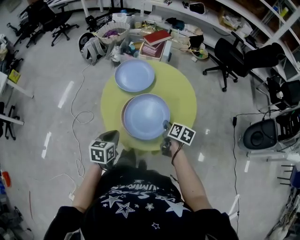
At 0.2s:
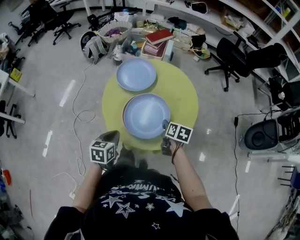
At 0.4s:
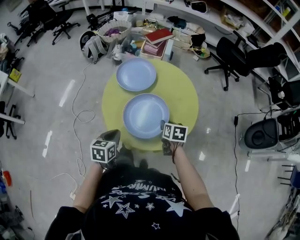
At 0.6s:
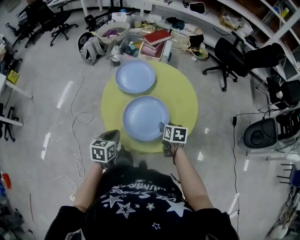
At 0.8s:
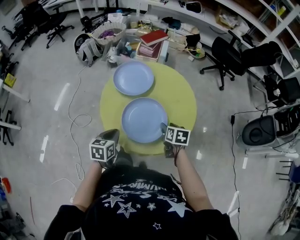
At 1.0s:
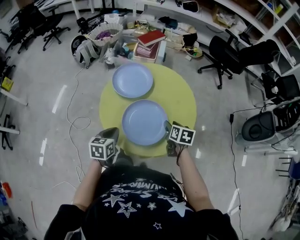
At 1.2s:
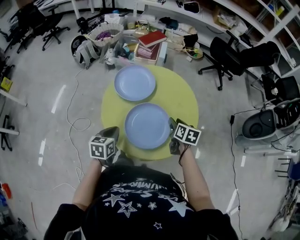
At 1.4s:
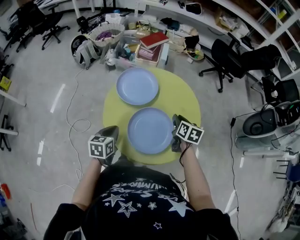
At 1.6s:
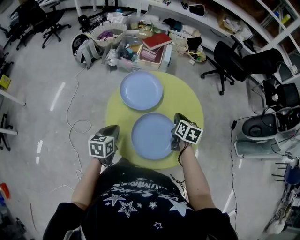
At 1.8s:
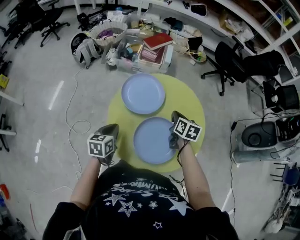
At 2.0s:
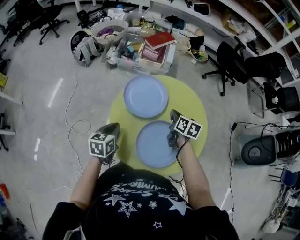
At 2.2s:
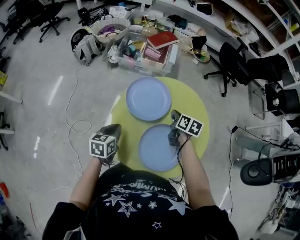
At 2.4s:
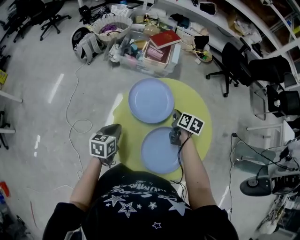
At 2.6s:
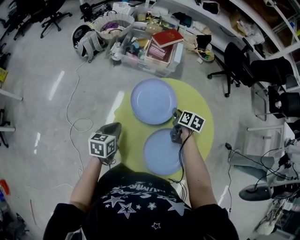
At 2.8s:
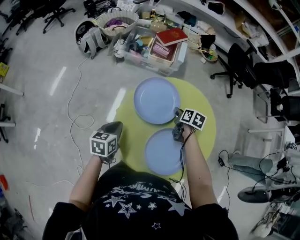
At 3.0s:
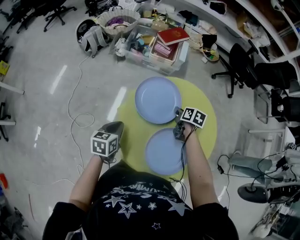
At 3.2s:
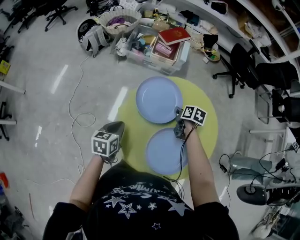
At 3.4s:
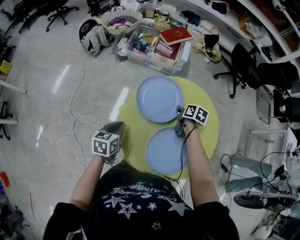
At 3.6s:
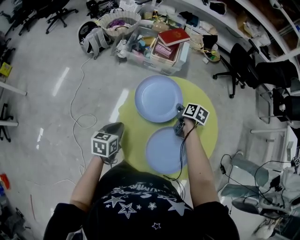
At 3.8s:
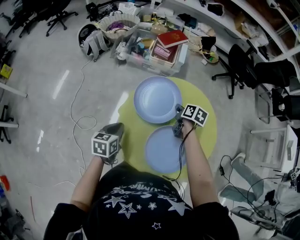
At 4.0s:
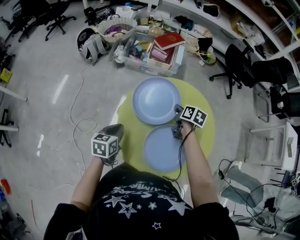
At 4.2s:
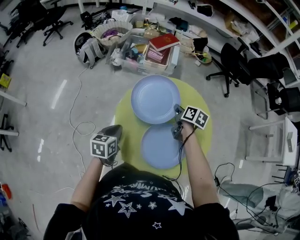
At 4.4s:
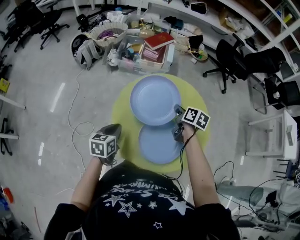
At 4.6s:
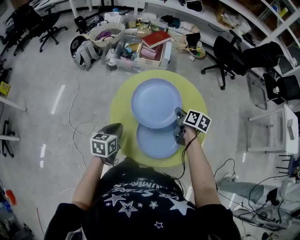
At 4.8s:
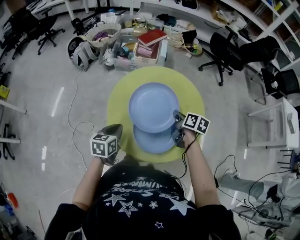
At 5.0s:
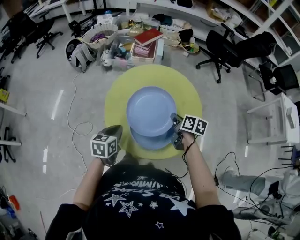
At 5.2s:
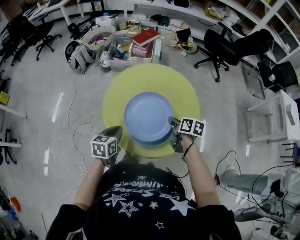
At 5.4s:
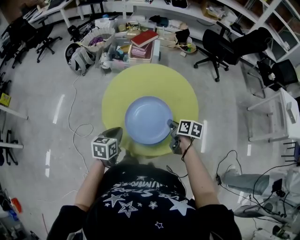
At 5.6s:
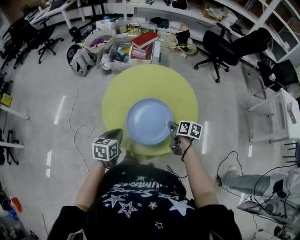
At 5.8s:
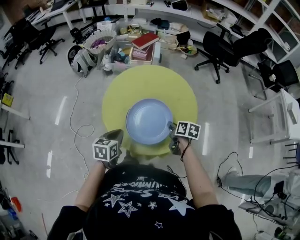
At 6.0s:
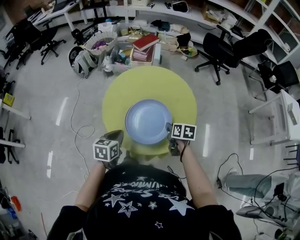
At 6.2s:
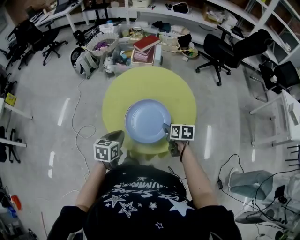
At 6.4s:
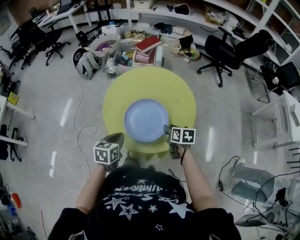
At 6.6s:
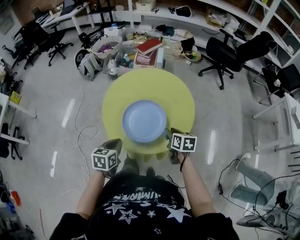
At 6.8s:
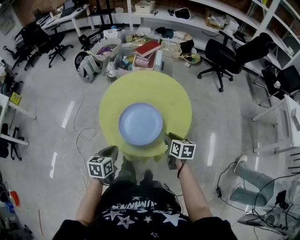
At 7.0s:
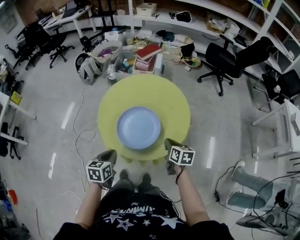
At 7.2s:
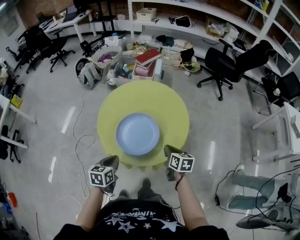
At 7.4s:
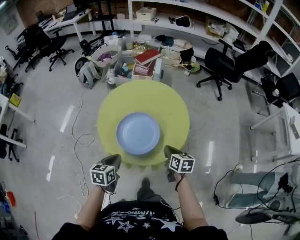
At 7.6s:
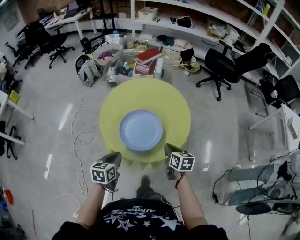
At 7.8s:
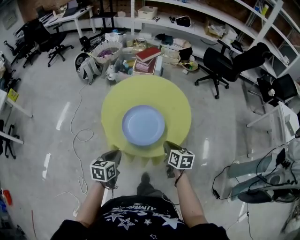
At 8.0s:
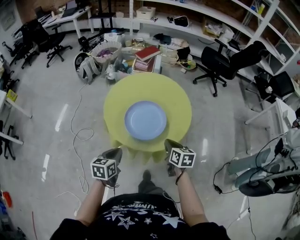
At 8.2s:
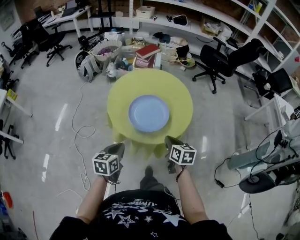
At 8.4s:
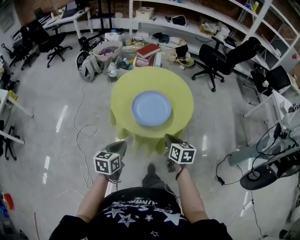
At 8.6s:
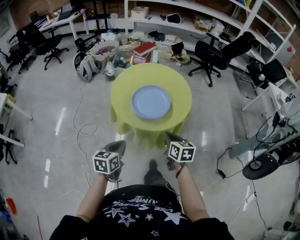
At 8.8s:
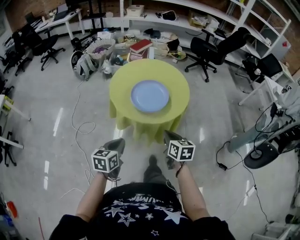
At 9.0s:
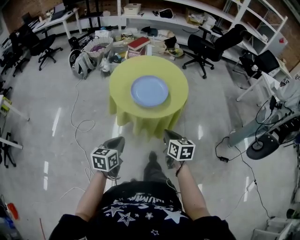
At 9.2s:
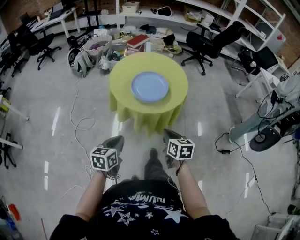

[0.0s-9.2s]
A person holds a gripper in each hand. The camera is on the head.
0.0s to 1.6s: The right gripper travels forward by about 15 cm, changes its angle by some 20 degrees, and opens and closes again. The left gripper is displaced forward and to the left by approximately 15 cm.
1.6s to 3.0s: The right gripper goes about 15 cm forward, downward and to the left, and rotates some 20 degrees; the left gripper travels forward and to the left by approximately 10 cm.
3.0s to 4.6s: The right gripper moves backward, upward and to the right, roughly 15 cm. Meanwhile the left gripper goes some 10 cm backward and to the right.
4.6s to 6.2s: The right gripper travels backward by roughly 15 cm, and opens its fingers. Meanwhile the left gripper is displaced backward and to the right by approximately 15 cm.
6.2s to 7.6s: Both grippers travel together backward, approximately 5 cm. The right gripper closes up.
7.6s to 9.2s: Both grippers travel together backward, roughly 20 cm.

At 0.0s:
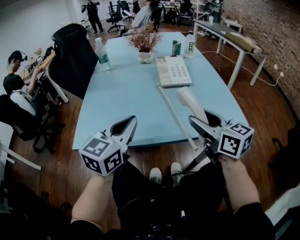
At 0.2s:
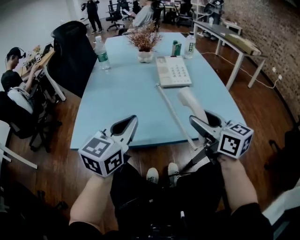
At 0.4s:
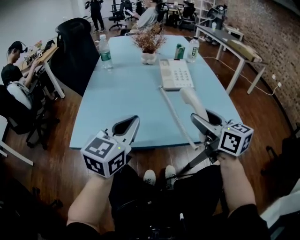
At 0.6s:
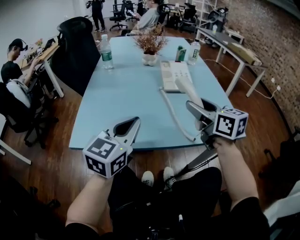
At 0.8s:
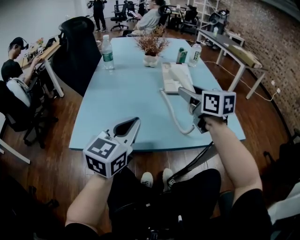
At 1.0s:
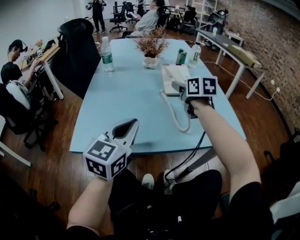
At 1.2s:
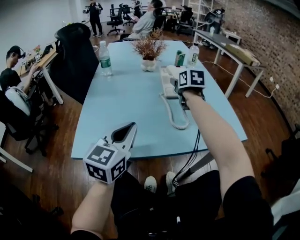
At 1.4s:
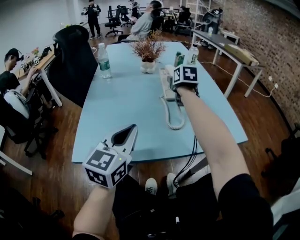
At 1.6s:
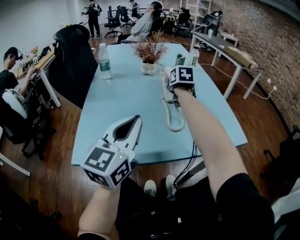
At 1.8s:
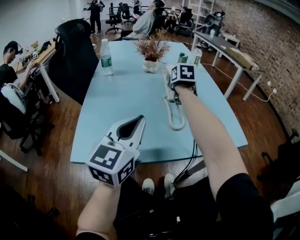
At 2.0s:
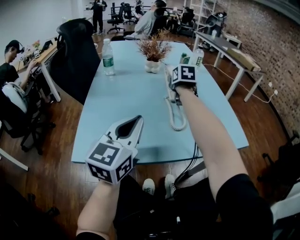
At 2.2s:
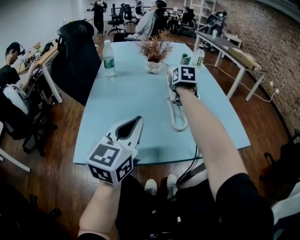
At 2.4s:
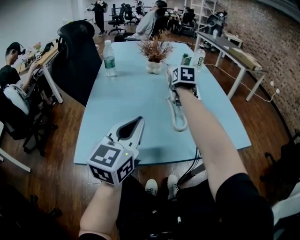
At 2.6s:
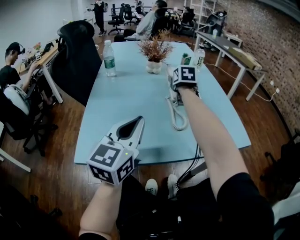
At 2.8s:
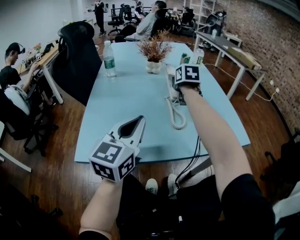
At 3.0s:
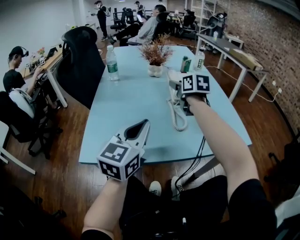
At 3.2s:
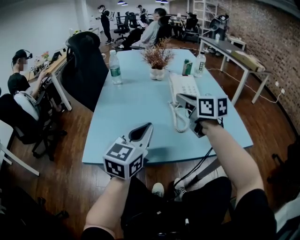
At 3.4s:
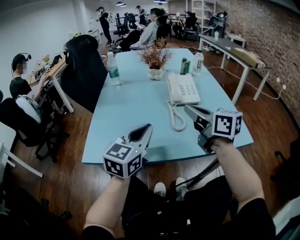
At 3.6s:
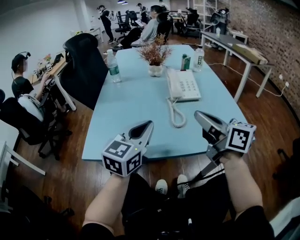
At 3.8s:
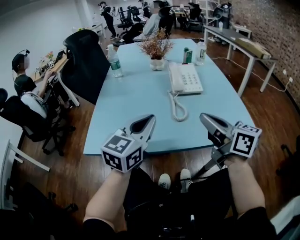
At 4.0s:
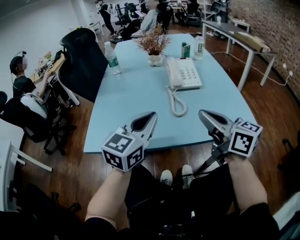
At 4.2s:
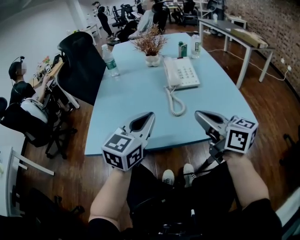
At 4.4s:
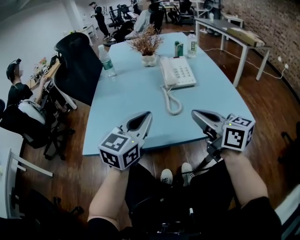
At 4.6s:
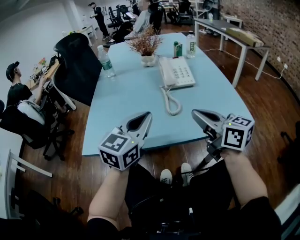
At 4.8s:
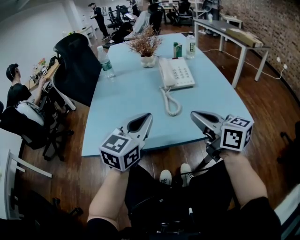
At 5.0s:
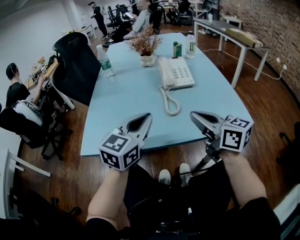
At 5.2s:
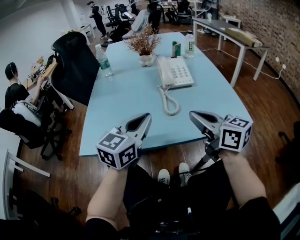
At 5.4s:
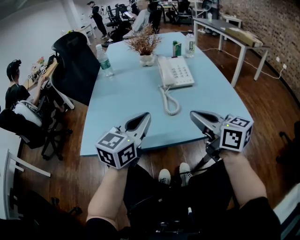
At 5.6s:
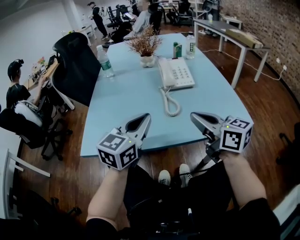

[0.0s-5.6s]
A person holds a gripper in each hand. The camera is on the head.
0.0s to 1.4s: The right gripper goes about 30 cm forward, and swivels roughly 30 degrees.
1.4s to 2.8s: The grippers move only a little.
2.8s to 4.2s: The left gripper heads to the right, covering some 5 cm. The right gripper moves backward, approximately 35 cm, rotates about 40 degrees, and closes its fingers.
4.2s to 5.6s: The grippers move only a little.

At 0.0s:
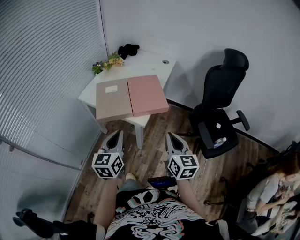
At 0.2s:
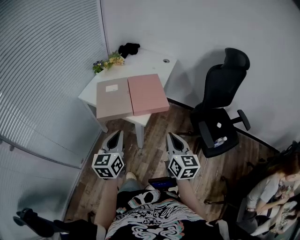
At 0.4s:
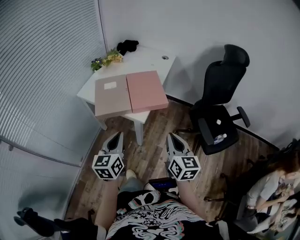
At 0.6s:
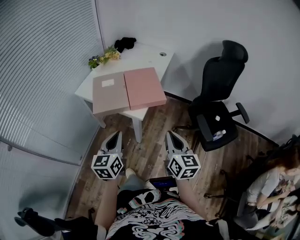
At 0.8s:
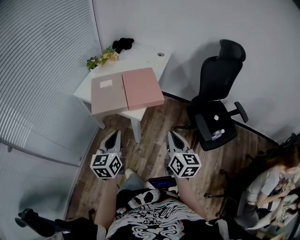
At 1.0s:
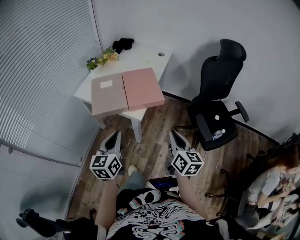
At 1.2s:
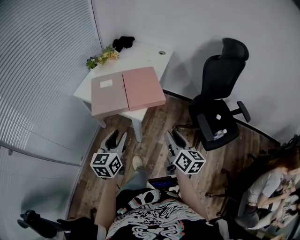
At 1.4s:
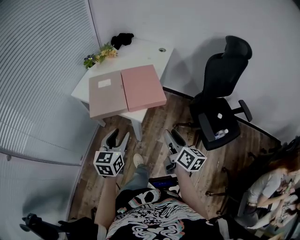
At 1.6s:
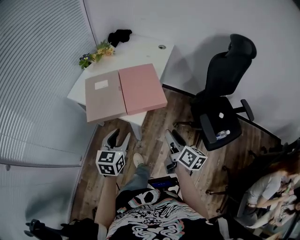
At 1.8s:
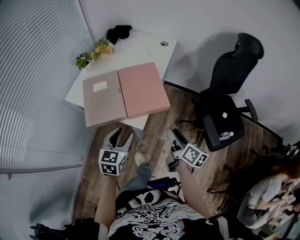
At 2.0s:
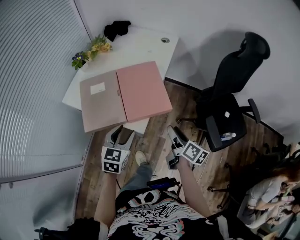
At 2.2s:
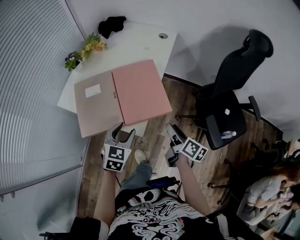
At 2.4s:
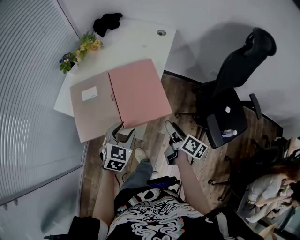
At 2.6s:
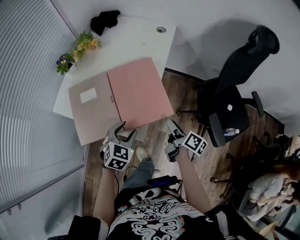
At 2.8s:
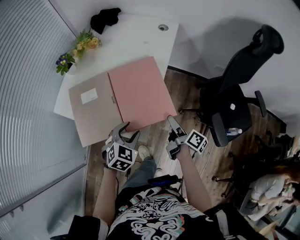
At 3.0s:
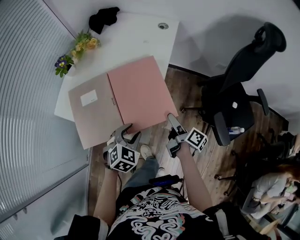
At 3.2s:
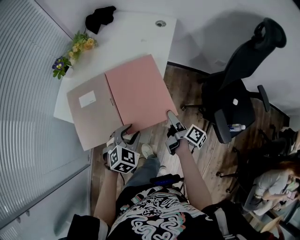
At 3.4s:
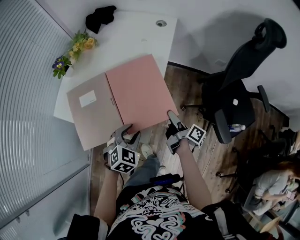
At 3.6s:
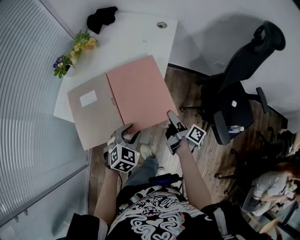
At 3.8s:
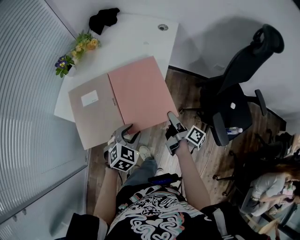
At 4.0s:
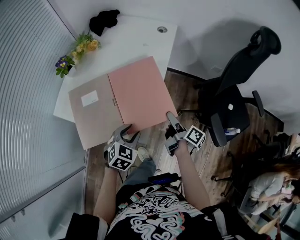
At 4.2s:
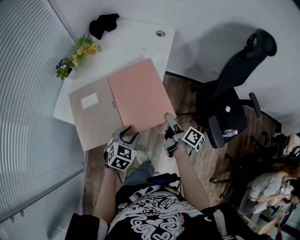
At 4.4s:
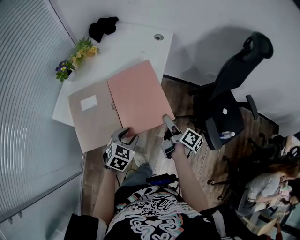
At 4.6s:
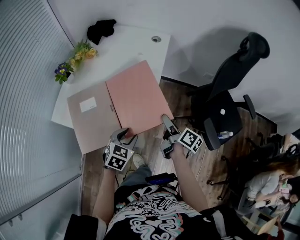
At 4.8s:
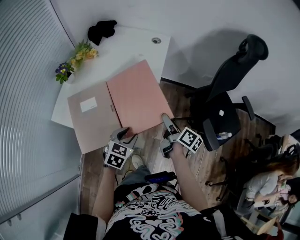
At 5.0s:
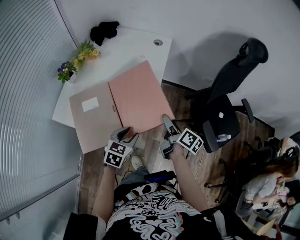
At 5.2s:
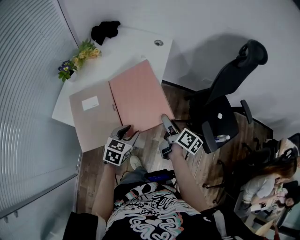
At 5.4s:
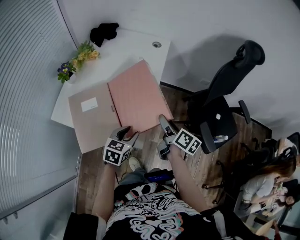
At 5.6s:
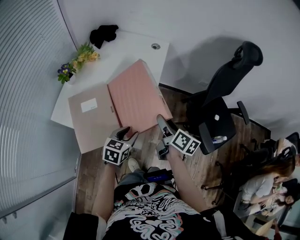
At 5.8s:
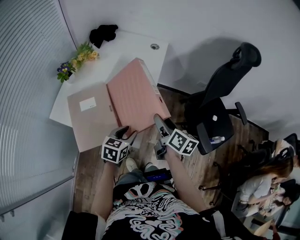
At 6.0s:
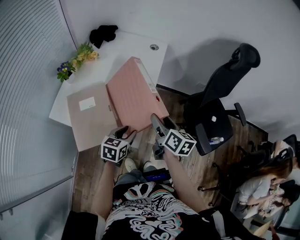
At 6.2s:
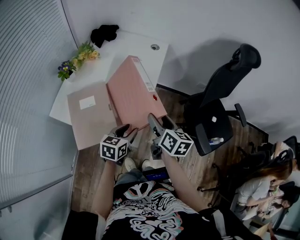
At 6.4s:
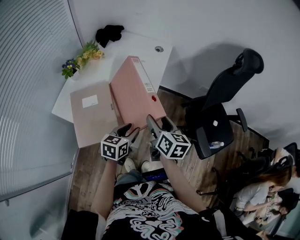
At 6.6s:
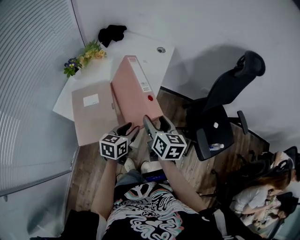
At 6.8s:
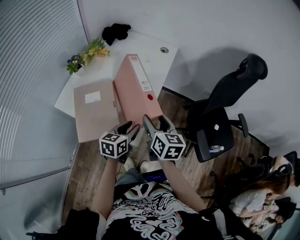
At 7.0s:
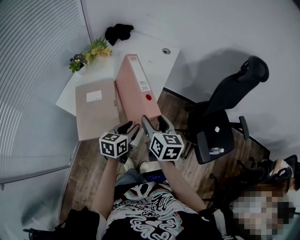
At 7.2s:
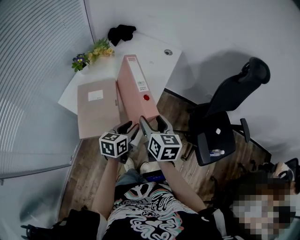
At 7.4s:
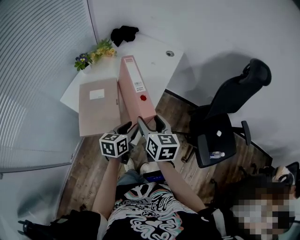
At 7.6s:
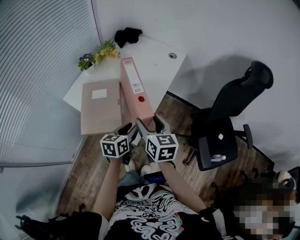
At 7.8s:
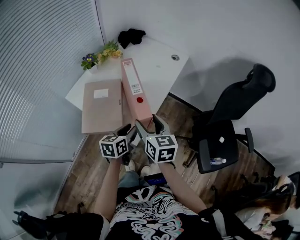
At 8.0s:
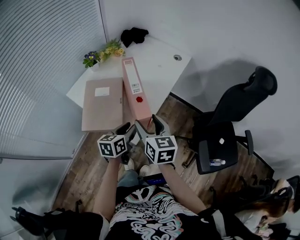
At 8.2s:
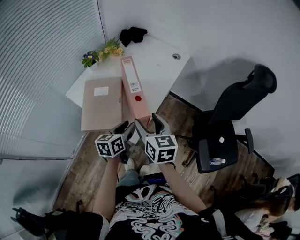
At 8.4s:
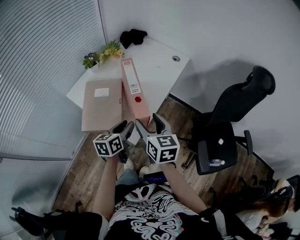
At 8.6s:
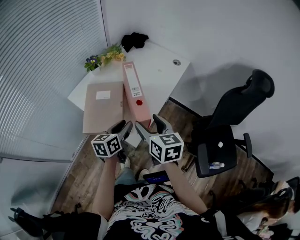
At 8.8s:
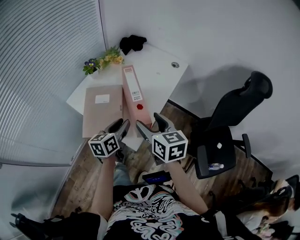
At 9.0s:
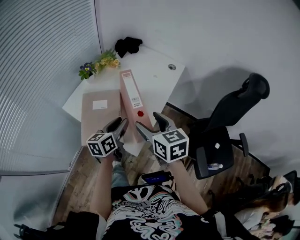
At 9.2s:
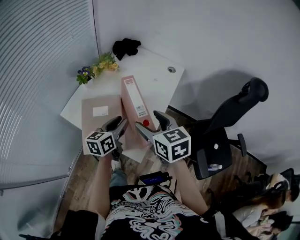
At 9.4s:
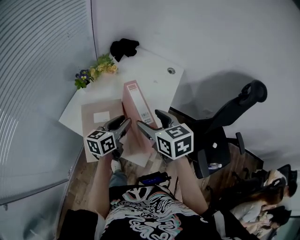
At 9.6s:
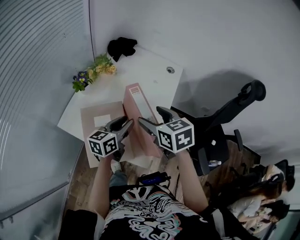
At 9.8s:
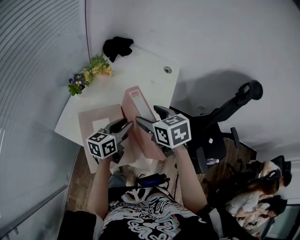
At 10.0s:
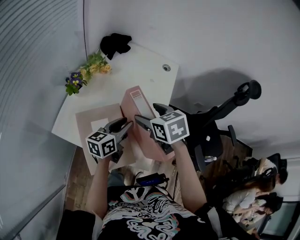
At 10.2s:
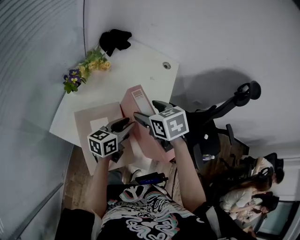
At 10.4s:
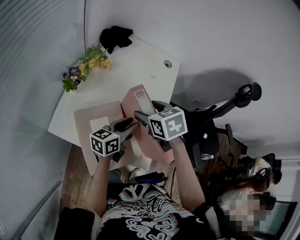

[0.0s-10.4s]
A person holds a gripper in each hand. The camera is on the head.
0.0s to 1.4s: The left gripper shifts by about 5 cm, and opens its fingers. The right gripper is displaced downward by about 5 cm, rotates approximately 30 degrees, and opens.
1.4s to 3.0s: The grippers both shift forward and downward by about 25 cm. The right gripper swivels about 40 degrees, and opens. Meanwhile the left gripper rotates about 50 degrees.
3.0s to 4.4s: The grippers make only small movements.
4.4s to 6.0s: The right gripper is displaced upward by roughly 10 cm, and rotates some 40 degrees; the left gripper turns by some 30 degrees.
6.0s to 7.4s: The left gripper swivels roughly 20 degrees; the right gripper moves to the left, roughly 5 cm, and swivels about 30 degrees.
7.4s to 9.0s: The left gripper is displaced to the left, forward and upward by approximately 10 cm, while the right gripper shifts some 5 cm upward.
9.0s to 10.4s: The right gripper travels forward and to the left by roughly 20 cm, and rotates approximately 30 degrees; the left gripper is displaced forward by some 10 cm, and turns by approximately 30 degrees.
